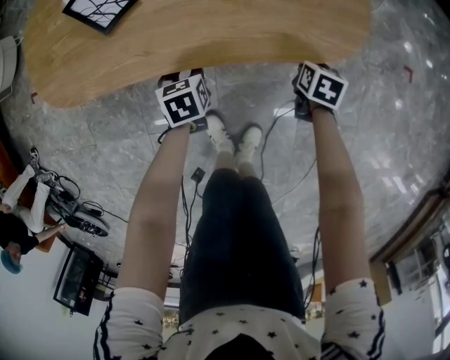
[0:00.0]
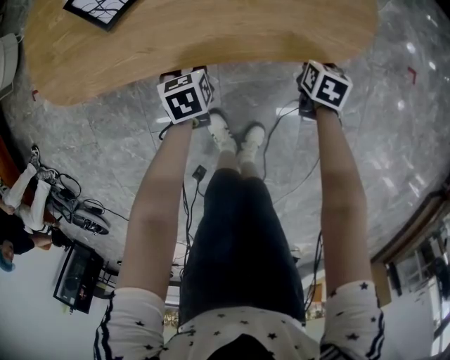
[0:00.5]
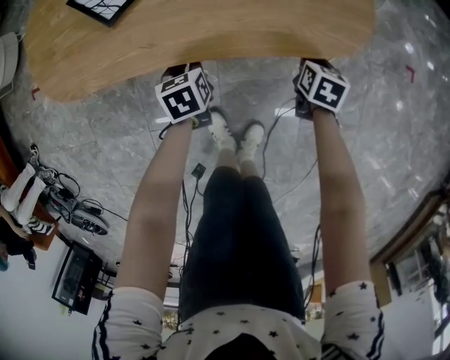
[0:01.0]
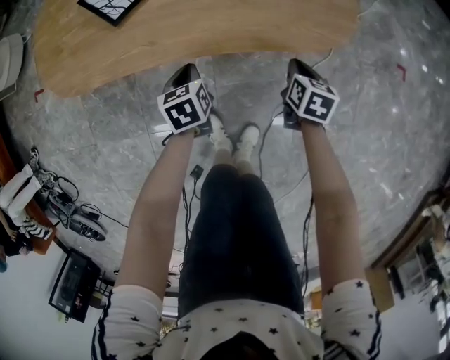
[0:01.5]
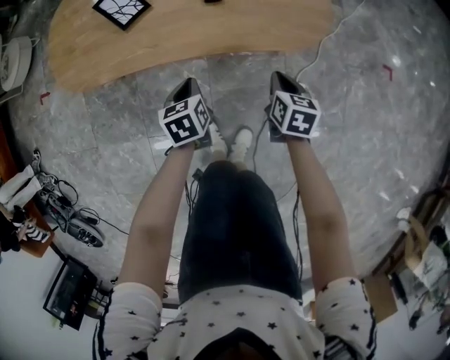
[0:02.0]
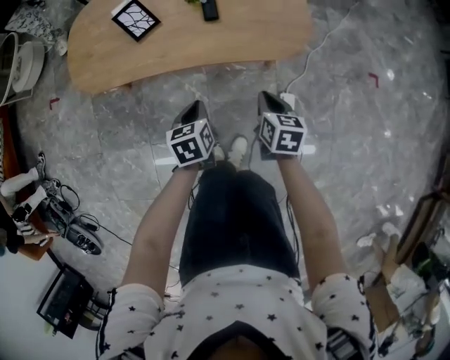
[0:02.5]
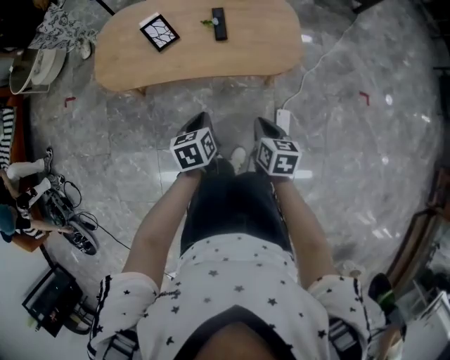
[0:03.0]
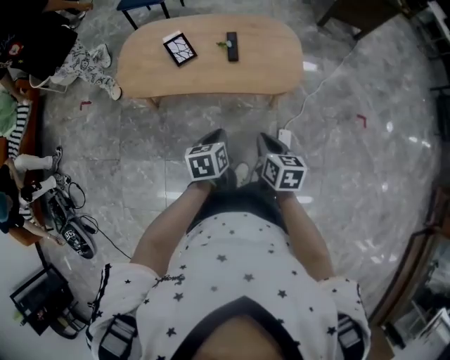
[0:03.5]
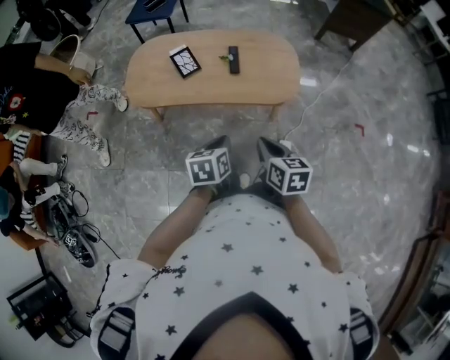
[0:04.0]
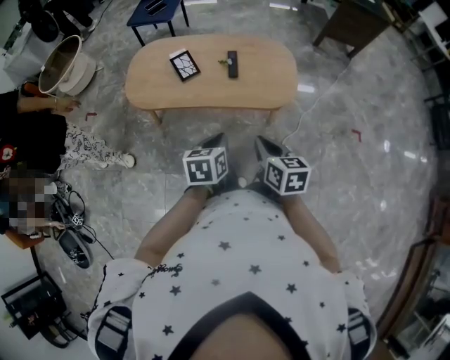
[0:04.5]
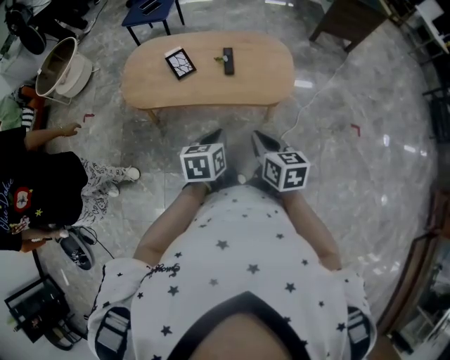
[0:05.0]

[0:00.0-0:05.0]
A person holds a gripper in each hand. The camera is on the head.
0:00.0 to 0:02.5: The two grippers go about 25 cm upward and backward. The left gripper closes up, while the right gripper turns by about 20 degrees.
0:02.5 to 0:05.0: The right gripper is displaced upward and backward by approximately 30 cm, and rotates some 20 degrees. Meanwhile the left gripper moves upward, some 25 cm.

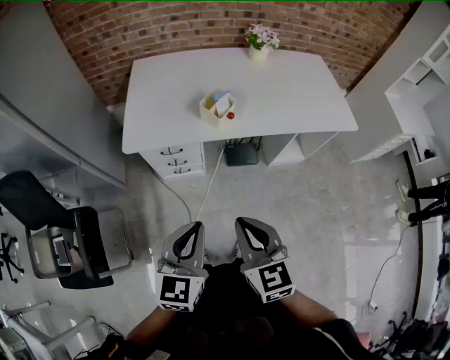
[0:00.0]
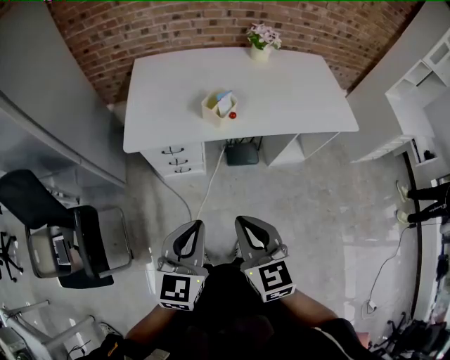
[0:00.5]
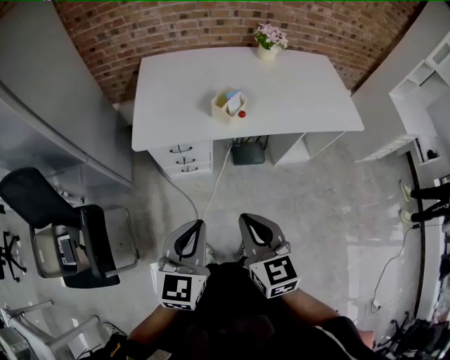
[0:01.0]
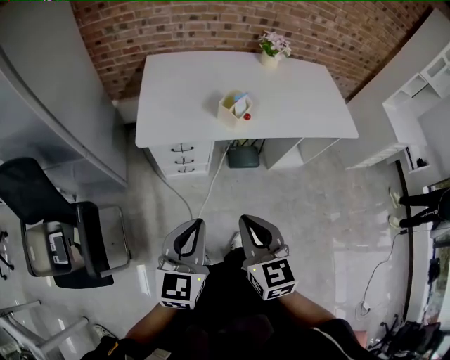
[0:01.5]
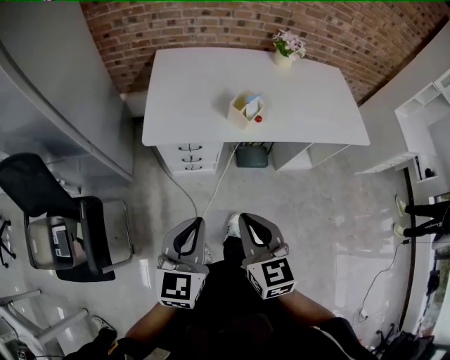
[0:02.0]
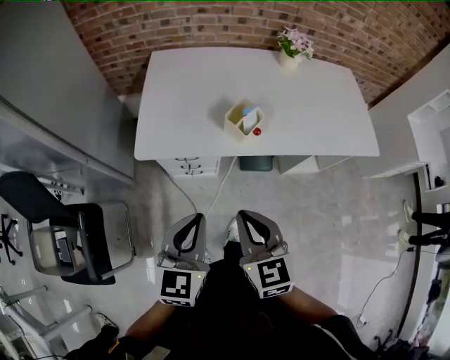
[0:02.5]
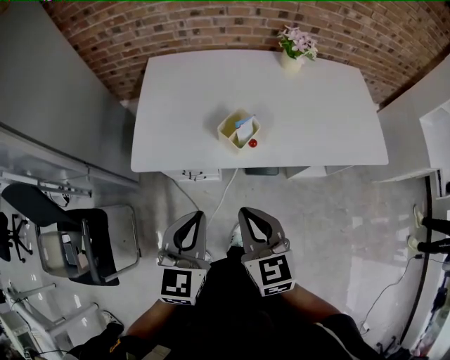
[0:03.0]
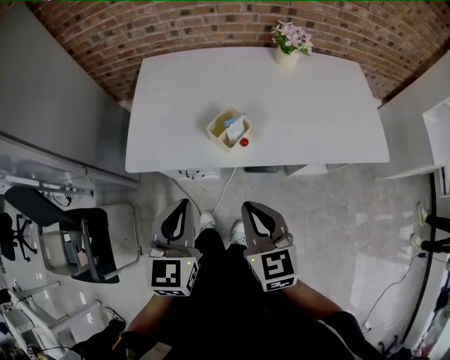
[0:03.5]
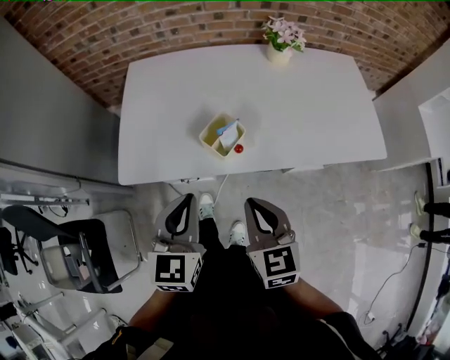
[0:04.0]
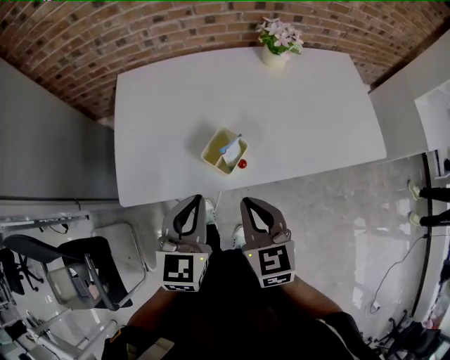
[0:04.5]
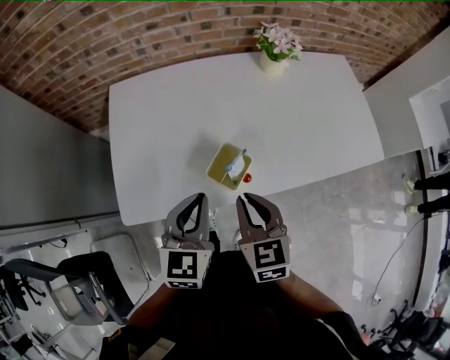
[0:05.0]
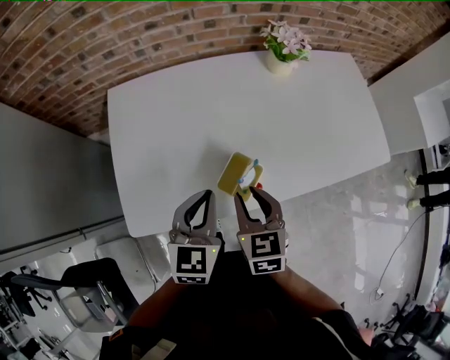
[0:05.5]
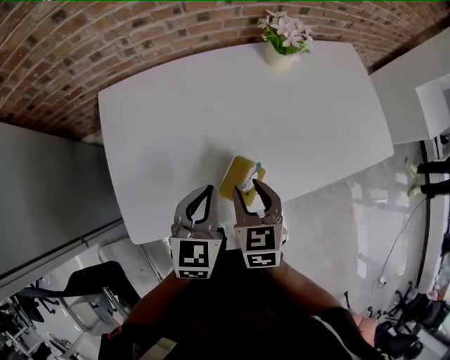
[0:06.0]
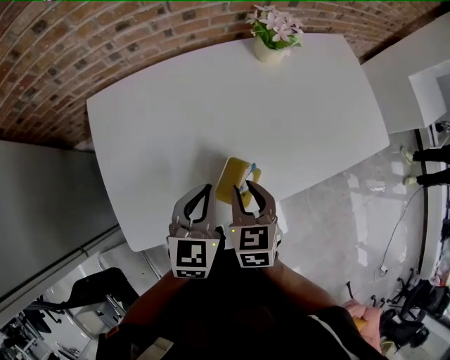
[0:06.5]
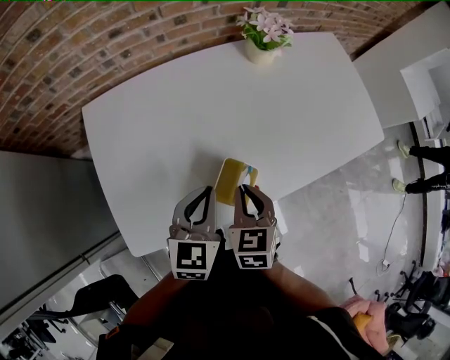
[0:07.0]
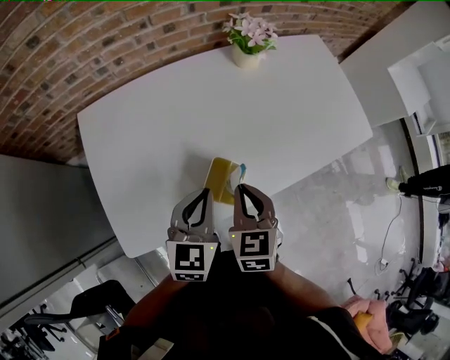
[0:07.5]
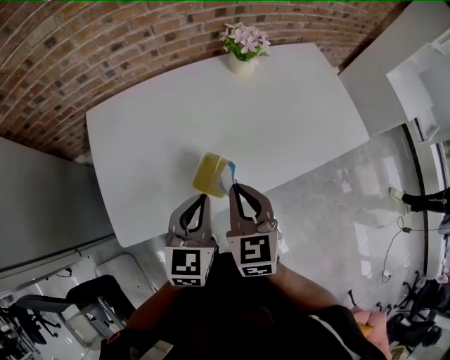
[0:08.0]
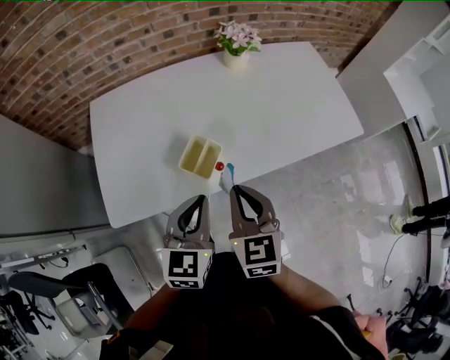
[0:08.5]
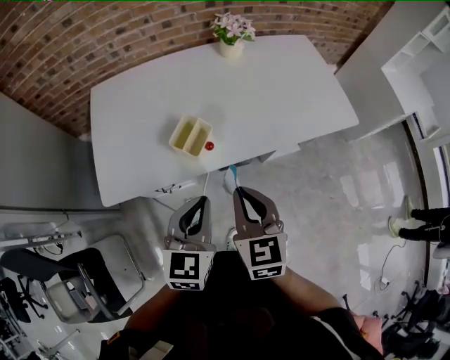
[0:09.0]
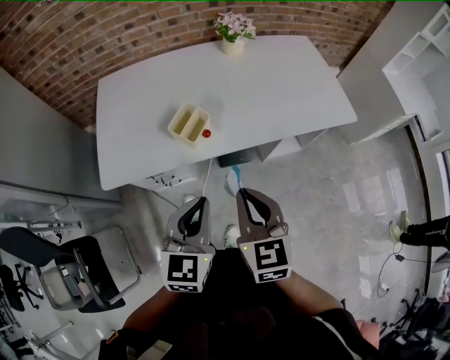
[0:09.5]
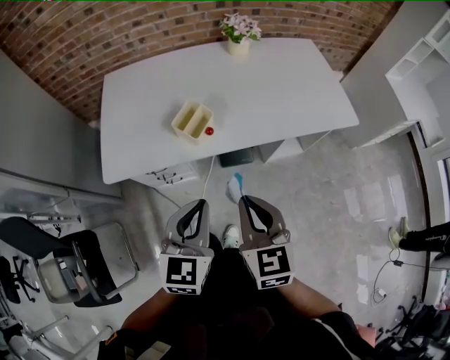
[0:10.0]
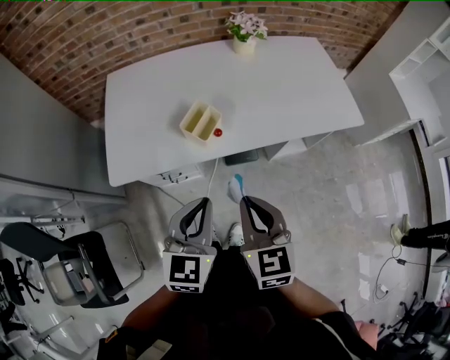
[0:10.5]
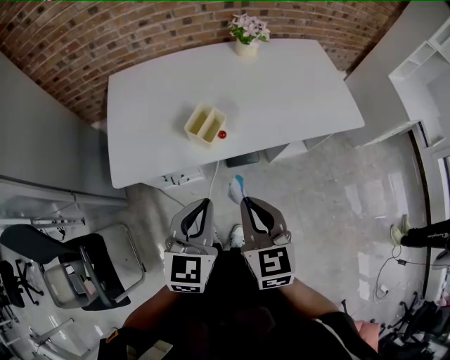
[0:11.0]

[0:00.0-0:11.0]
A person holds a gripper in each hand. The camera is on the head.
0:00.0 to 0:02.0: Both grippers move to the left, some 10 cm.
0:02.0 to 0:03.5: Both grippers travel together forward and to the right, about 20 cm.
0:03.5 to 0:05.5: Both grippers travel together forward, roughly 20 cm. The right gripper turns by about 20 degrees, and opens its fingers.
0:05.5 to 0:07.5: The right gripper closes.
0:07.5 to 0:09.0: The left gripper moves backward and to the right, about 20 cm. The right gripper moves backward, to the right and upward, some 20 cm.
0:09.0 to 0:11.0: Both grippers travel together backward, approximately 5 cm.

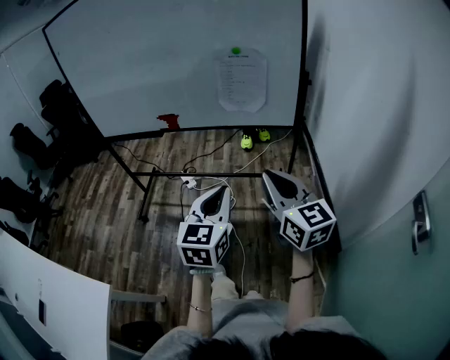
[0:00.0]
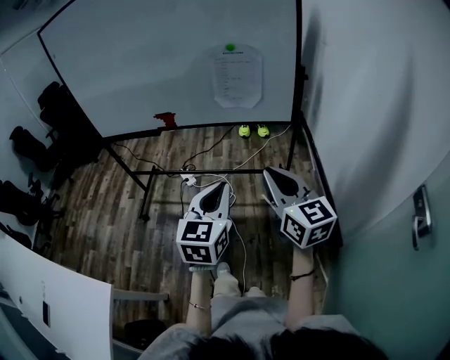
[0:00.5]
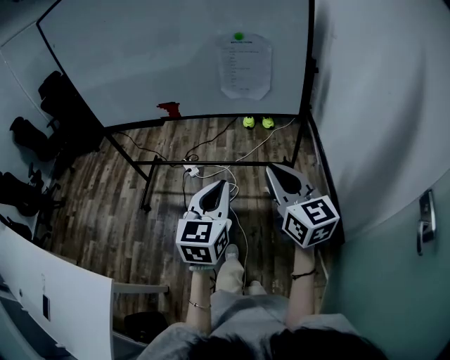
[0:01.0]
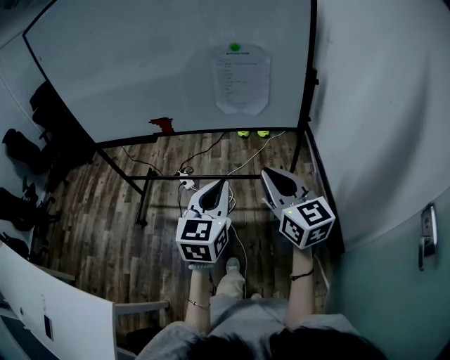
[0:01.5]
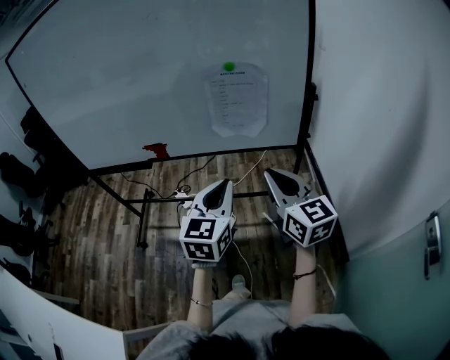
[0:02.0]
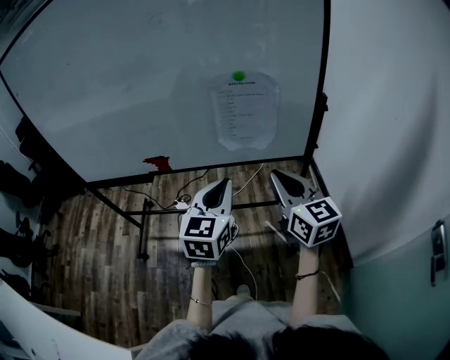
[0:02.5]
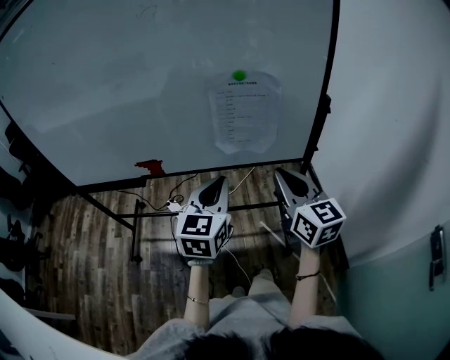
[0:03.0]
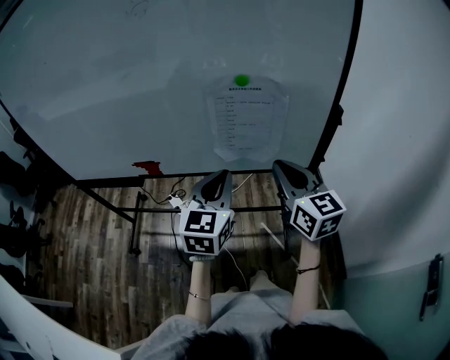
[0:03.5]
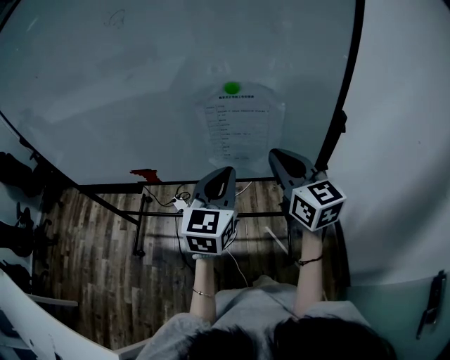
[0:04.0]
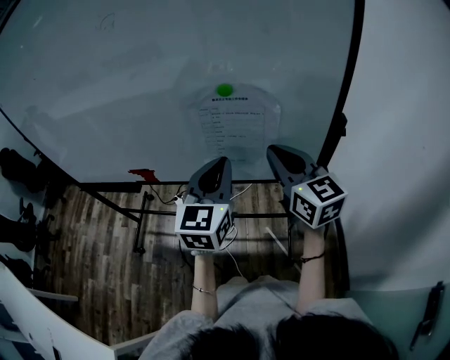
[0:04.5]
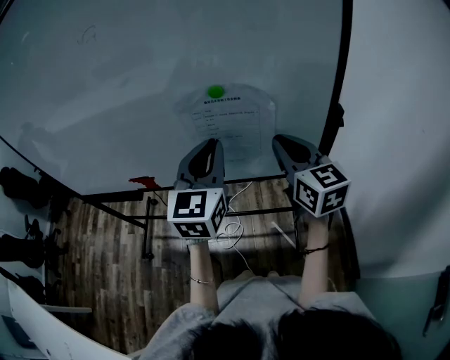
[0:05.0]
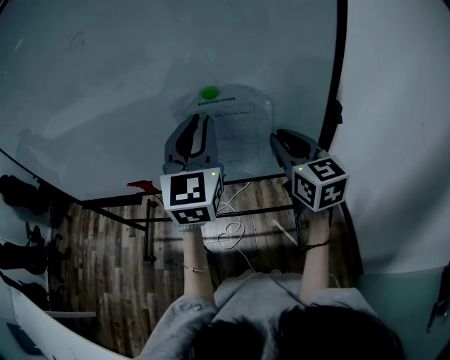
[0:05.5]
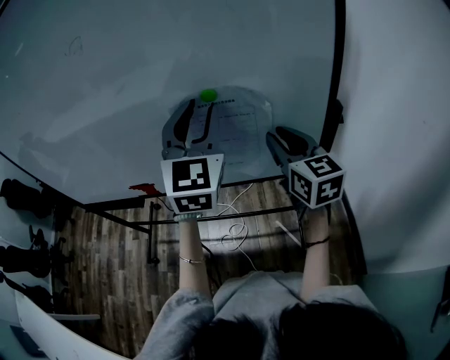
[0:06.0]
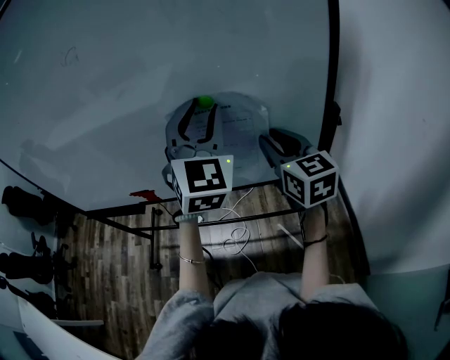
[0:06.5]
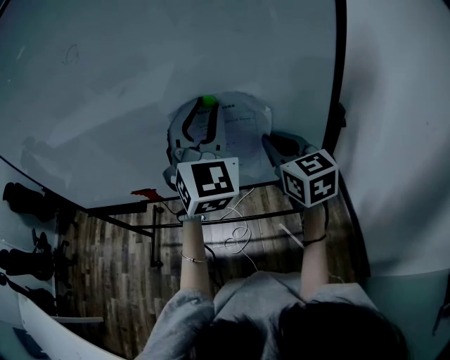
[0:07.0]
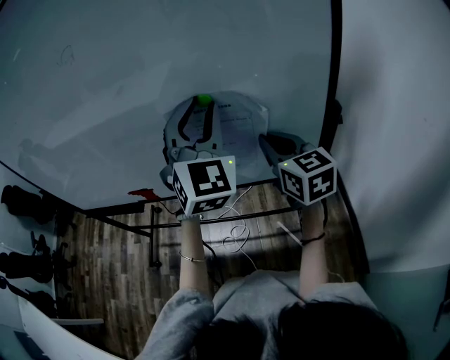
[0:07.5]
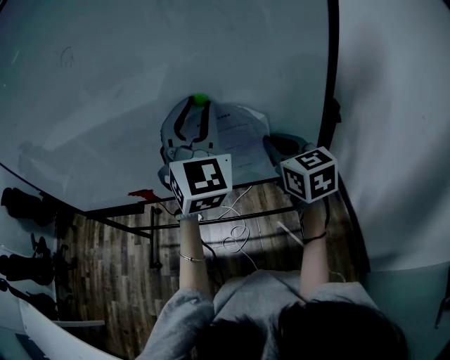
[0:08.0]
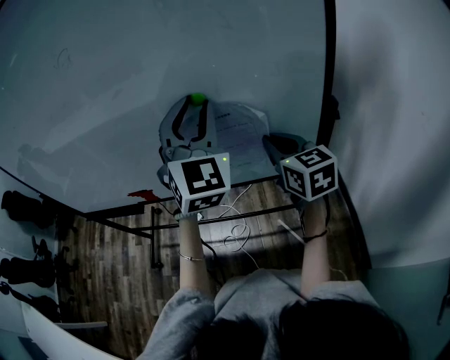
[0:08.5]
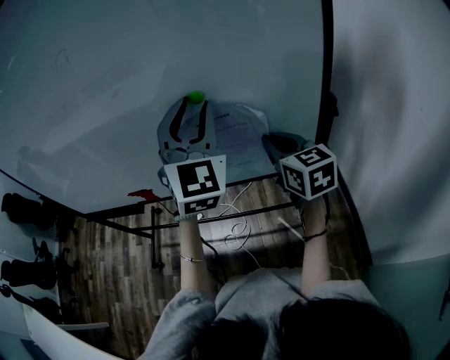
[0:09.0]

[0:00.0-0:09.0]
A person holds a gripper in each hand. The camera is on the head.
0:00.0 to 0:02.0: Both grippers travel together forward, some 20 cm.
0:02.0 to 0:04.5: The grippers both shift forward by about 25 cm.
0:04.5 to 0:07.0: The left gripper is displaced upward and forward by some 15 cm, changes its angle by about 40 degrees, and opens its fingers, while the right gripper is displaced forward by roughly 5 cm.
0:07.0 to 0:09.0: The grippers make only small movements.

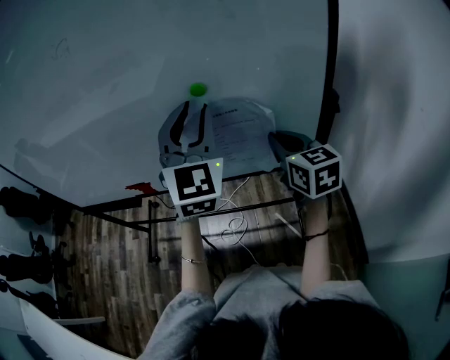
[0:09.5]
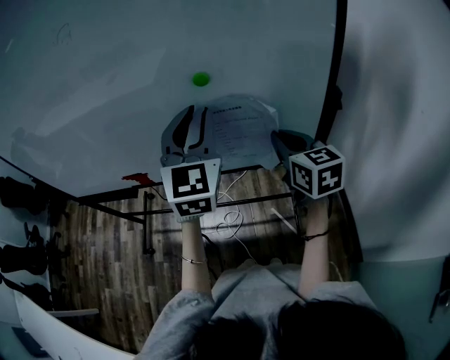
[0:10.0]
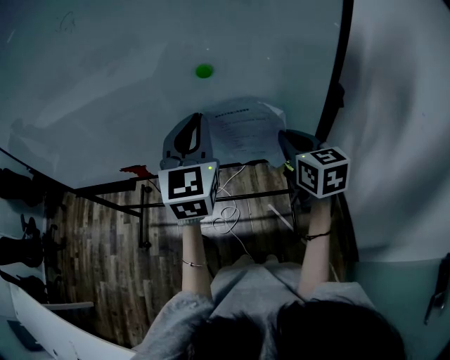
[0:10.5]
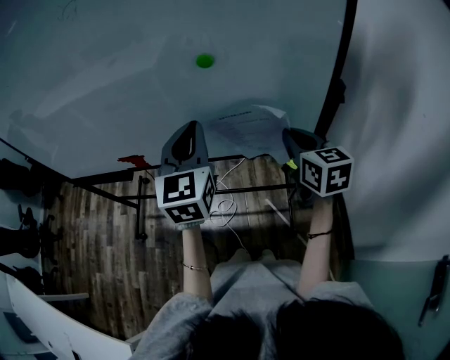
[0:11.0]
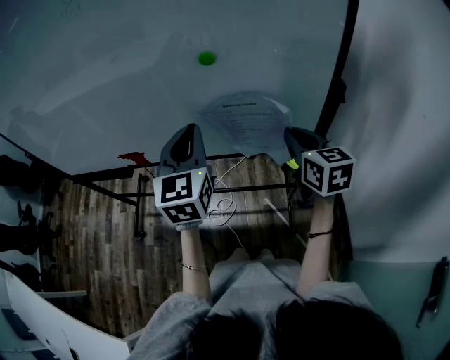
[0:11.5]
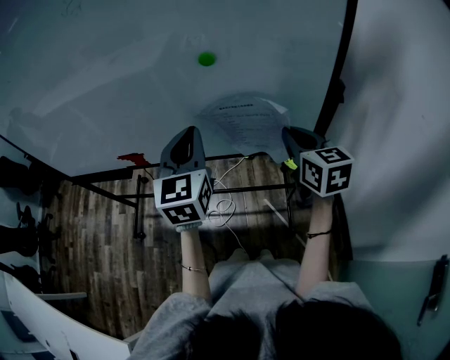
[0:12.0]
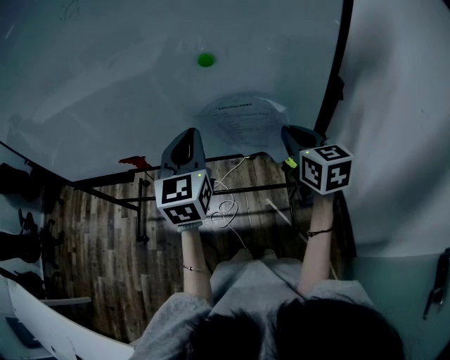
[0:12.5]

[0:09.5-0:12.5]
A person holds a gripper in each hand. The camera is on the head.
0:09.5 to 0:11.0: The left gripper goes some 10 cm downward and to the left, rotates some 20 degrees, and closes its fingers.
0:11.0 to 0:12.5: The grippers stay close to where they were, moving slightly.
